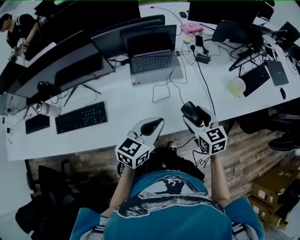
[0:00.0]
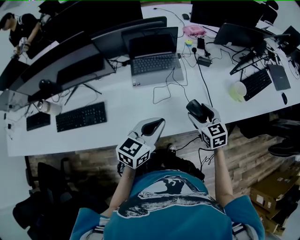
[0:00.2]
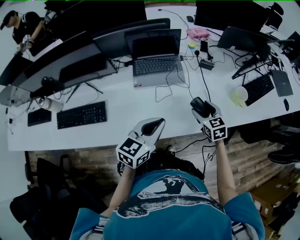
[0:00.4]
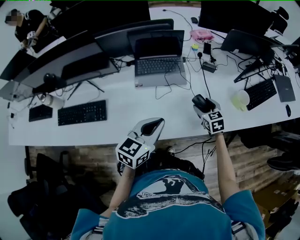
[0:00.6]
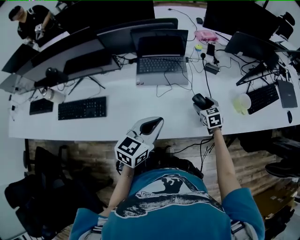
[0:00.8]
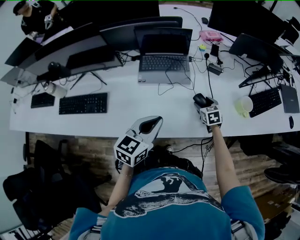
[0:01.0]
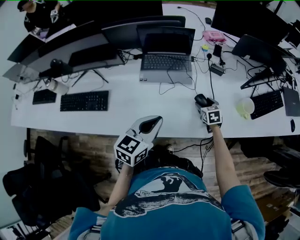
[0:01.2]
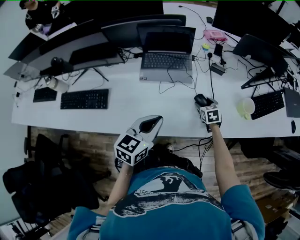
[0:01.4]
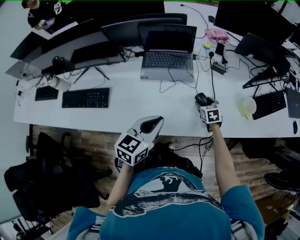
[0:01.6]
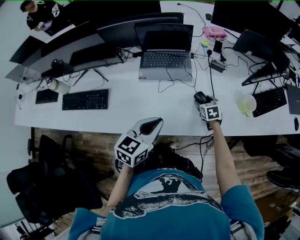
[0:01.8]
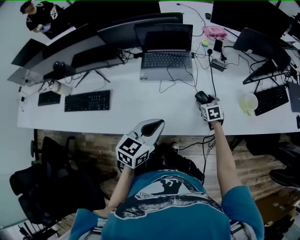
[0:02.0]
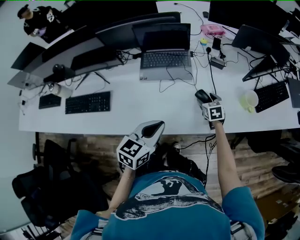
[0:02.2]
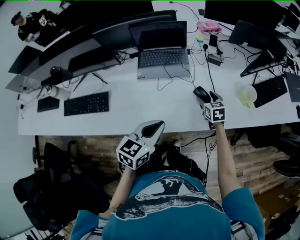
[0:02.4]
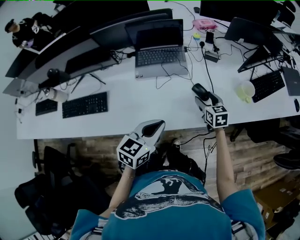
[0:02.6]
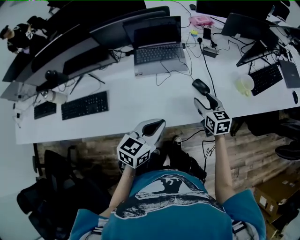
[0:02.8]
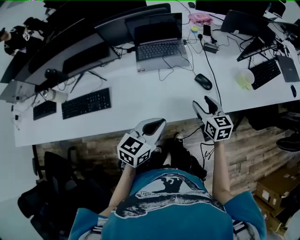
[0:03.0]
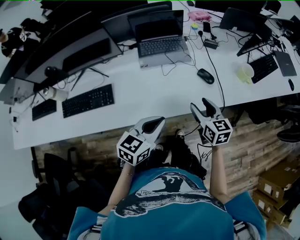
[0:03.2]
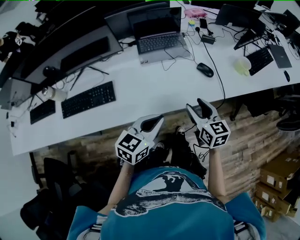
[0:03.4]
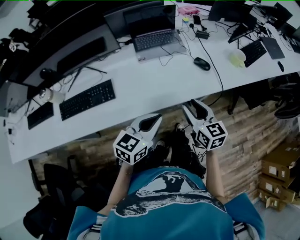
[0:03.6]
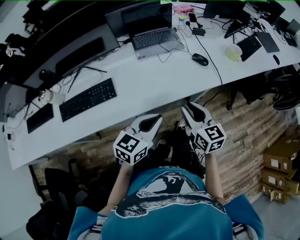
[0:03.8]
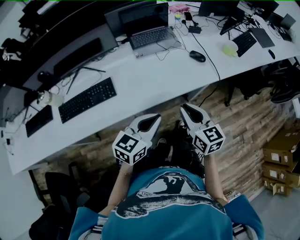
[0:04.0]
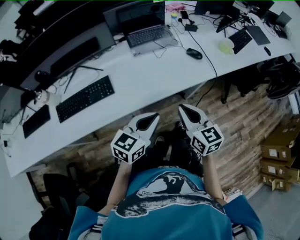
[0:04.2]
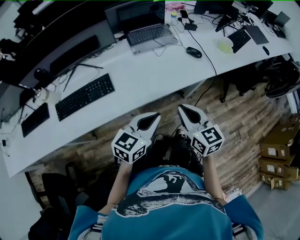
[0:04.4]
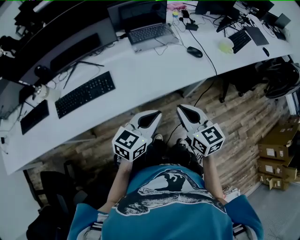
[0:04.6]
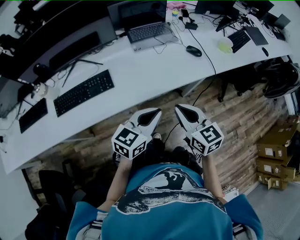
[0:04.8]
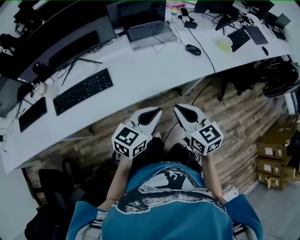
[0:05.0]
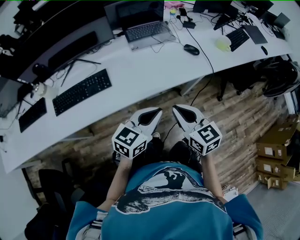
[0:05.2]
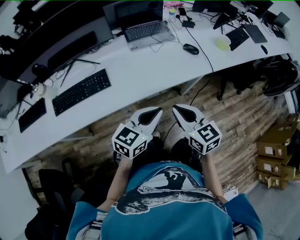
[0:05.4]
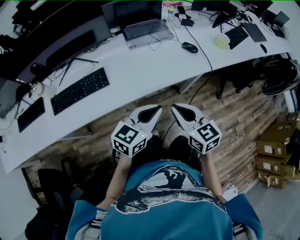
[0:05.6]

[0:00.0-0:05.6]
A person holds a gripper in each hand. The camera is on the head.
0.0 to 1.4 s: The right gripper shifts some 25 cm downward, forward and to the right, and swivels approximately 20 degrees.
1.4 to 2.8 s: The left gripper travels backward by approximately 5 cm; the right gripper heads upward and backward, covering roughly 15 cm, and swivels roughly 20 degrees.
2.8 to 4.2 s: The right gripper shifts roughly 35 cm backward and to the left, and closes its fingers, while the left gripper moves backward and to the left, approximately 20 cm.
4.2 to 5.6 s: The grippers stay close to where they were, moving slightly.

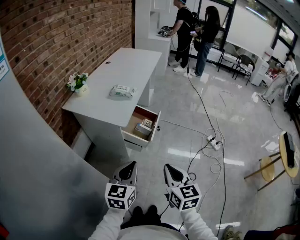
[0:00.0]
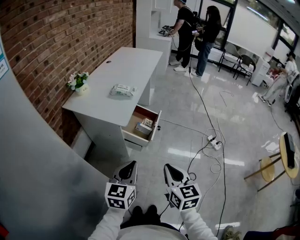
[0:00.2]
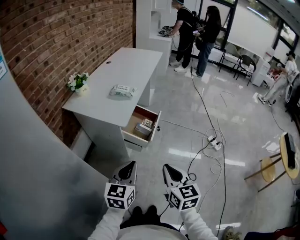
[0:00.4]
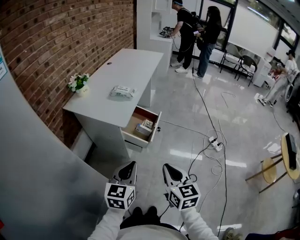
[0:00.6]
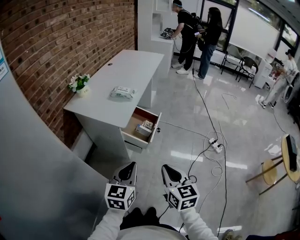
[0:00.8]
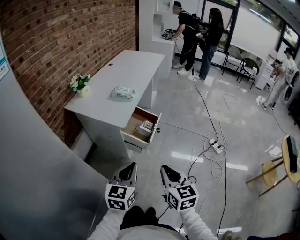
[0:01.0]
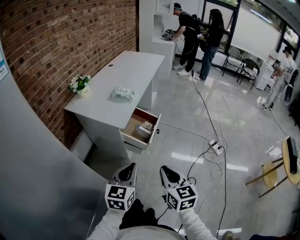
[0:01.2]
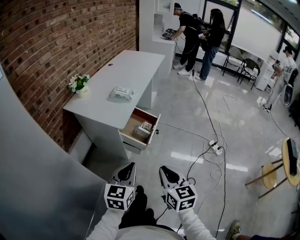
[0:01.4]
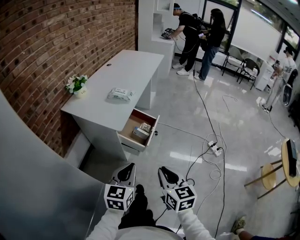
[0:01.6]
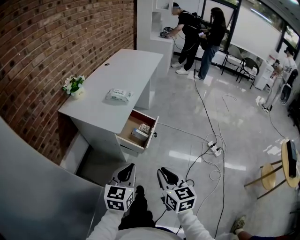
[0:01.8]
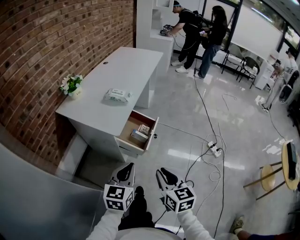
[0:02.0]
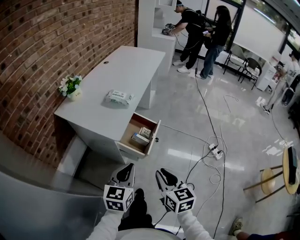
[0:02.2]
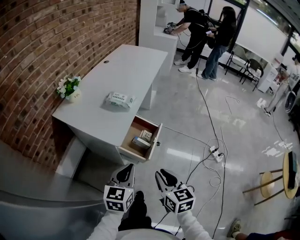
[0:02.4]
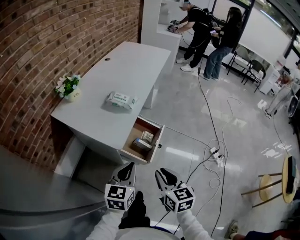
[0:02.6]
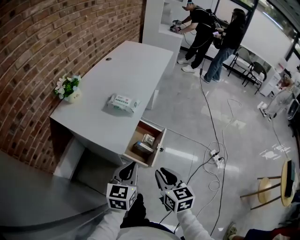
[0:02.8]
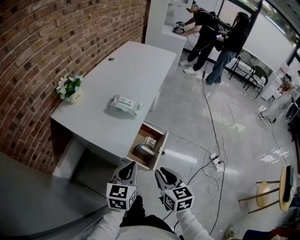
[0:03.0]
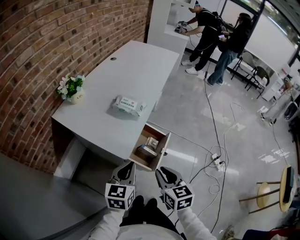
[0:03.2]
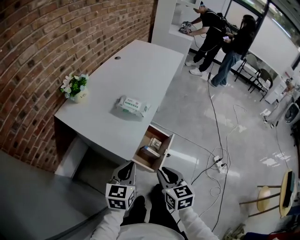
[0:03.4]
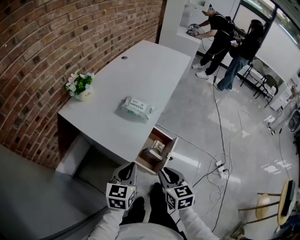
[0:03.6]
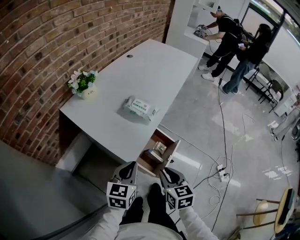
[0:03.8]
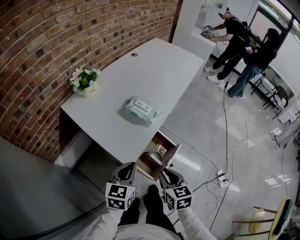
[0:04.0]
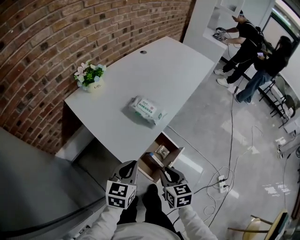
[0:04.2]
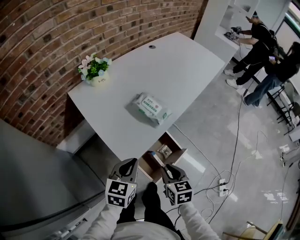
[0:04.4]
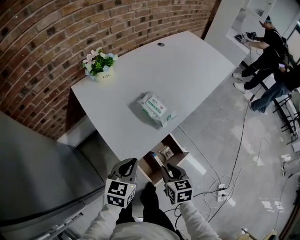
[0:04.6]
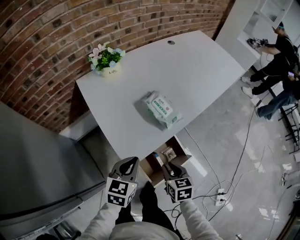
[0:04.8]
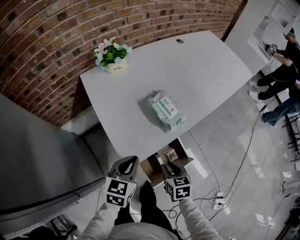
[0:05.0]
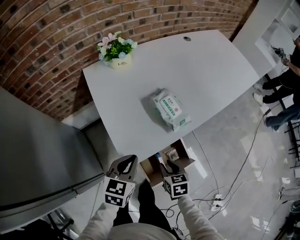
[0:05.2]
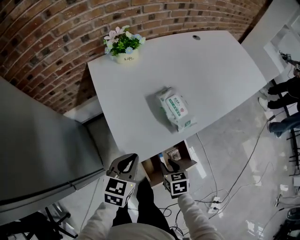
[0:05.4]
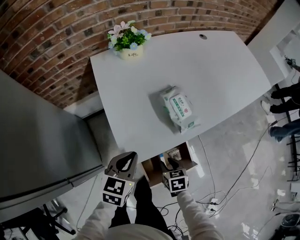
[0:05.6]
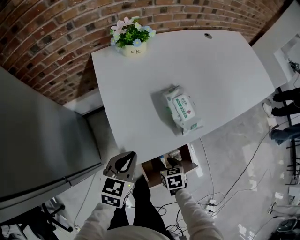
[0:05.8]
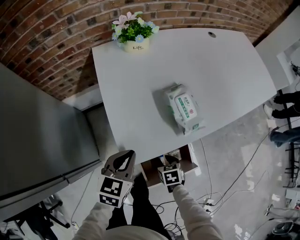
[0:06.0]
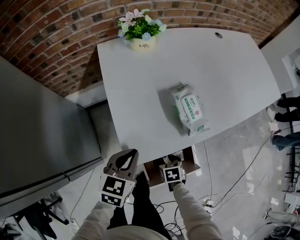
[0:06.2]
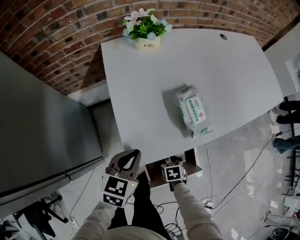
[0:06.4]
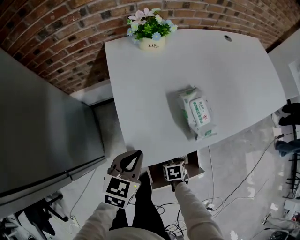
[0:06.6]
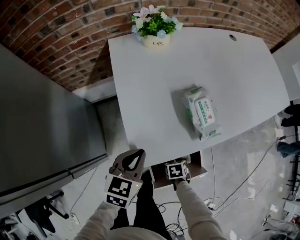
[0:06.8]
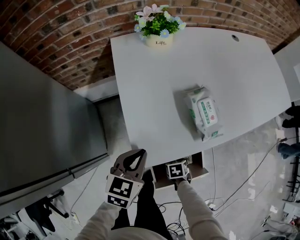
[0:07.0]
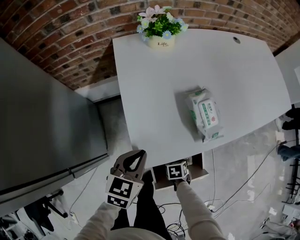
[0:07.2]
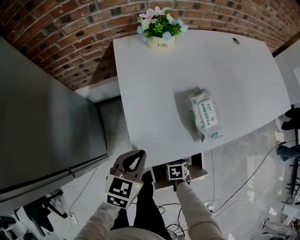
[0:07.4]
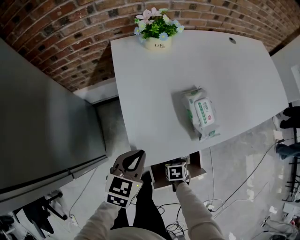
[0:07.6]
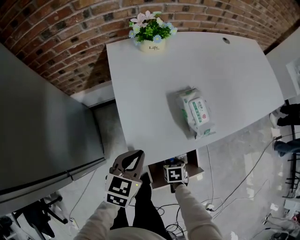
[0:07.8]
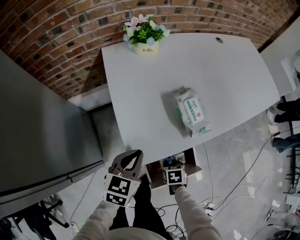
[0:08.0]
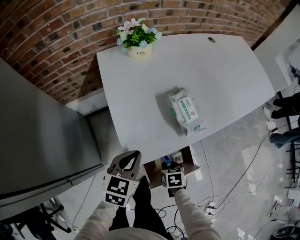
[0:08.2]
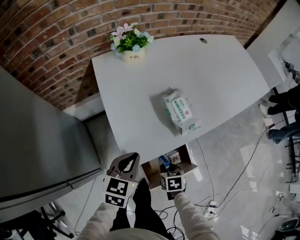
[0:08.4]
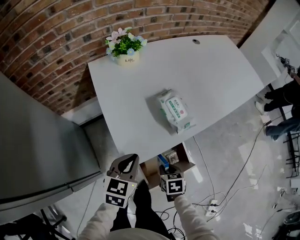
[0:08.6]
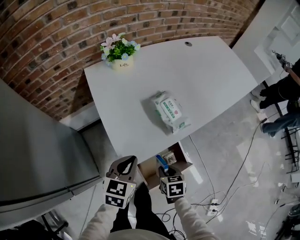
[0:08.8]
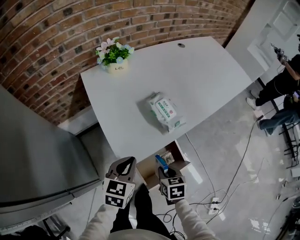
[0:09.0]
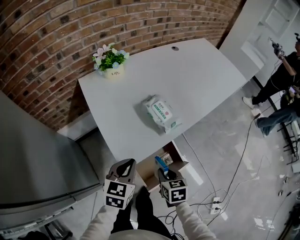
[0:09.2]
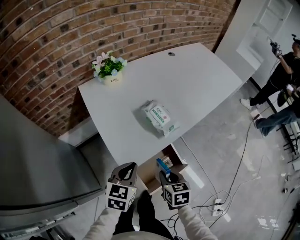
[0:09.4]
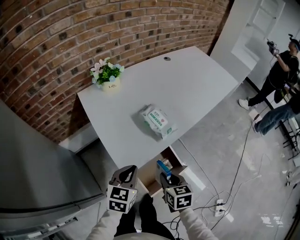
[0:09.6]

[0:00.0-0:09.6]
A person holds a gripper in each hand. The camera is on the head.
0.0 to 1.6 s: There are only small adjustments of the grippers.
1.6 to 3.2 s: The two grippers go roughly 25 cm forward.
3.2 to 4.8 s: The left gripper shifts by approximately 15 cm, and swivels about 20 degrees. The right gripper shifts by roughly 20 cm, and turns by roughly 30 degrees.
4.8 to 6.4 s: The right gripper is displaced downward by approximately 20 cm, and swivels roughly 30 degrees. The left gripper moves approximately 5 cm.
6.4 to 8.0 s: The right gripper closes up.
8.0 to 9.6 s: The left gripper moves roughly 5 cm; the right gripper heads upward, covering about 20 cm, and rotates about 30 degrees.

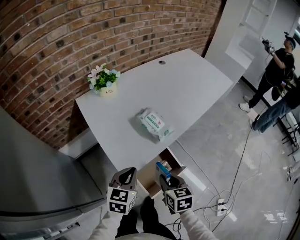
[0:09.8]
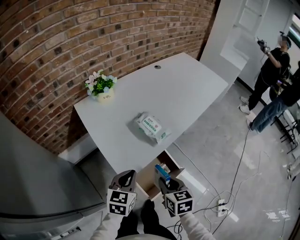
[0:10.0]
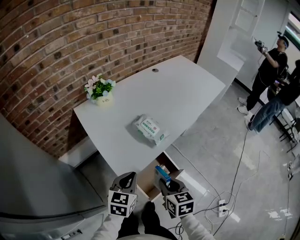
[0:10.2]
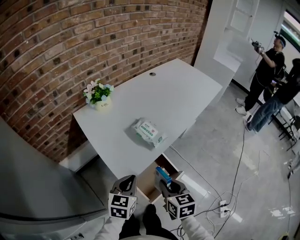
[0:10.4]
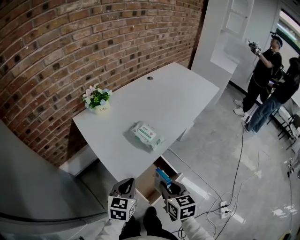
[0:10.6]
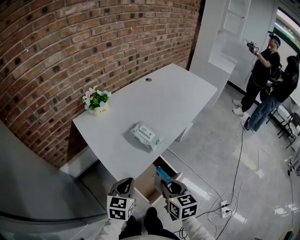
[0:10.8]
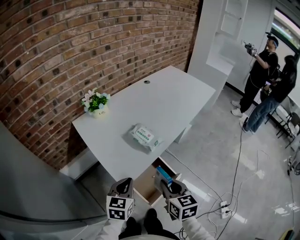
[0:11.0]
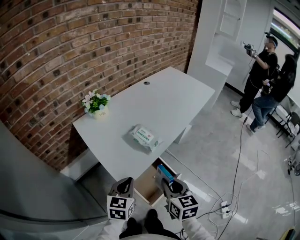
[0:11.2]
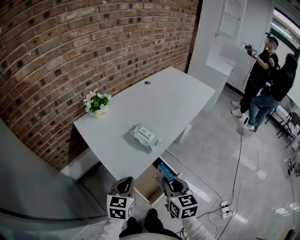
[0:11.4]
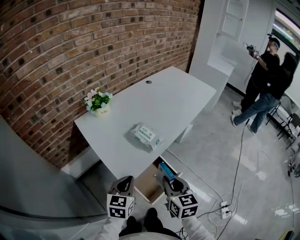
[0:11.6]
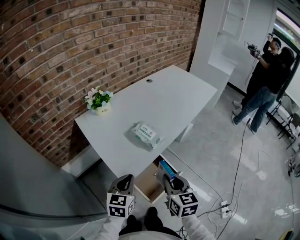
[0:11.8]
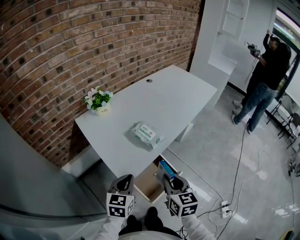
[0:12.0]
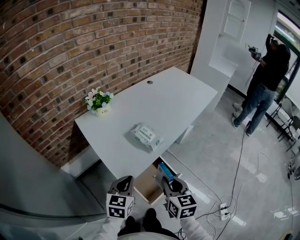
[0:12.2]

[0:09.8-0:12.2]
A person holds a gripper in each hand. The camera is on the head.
9.8 to 11.0 s: The right gripper is displaced upward by about 10 cm.
11.0 to 12.2 s: The grippers stay close to where they were, moving slightly.

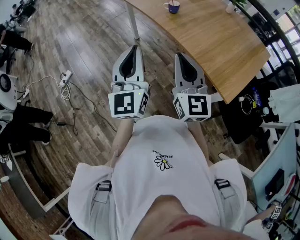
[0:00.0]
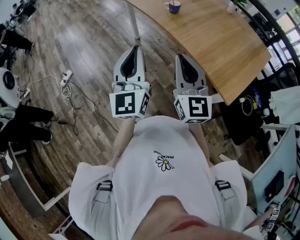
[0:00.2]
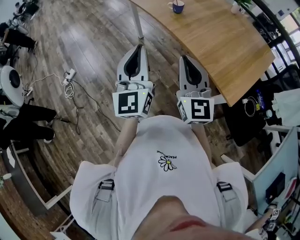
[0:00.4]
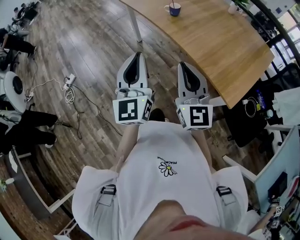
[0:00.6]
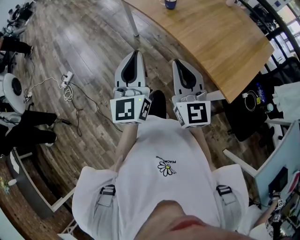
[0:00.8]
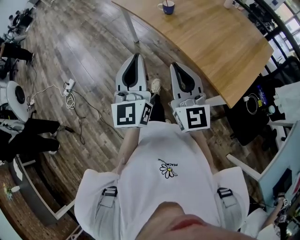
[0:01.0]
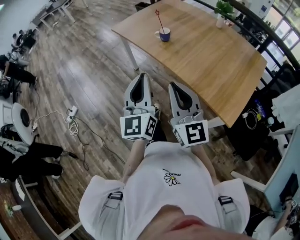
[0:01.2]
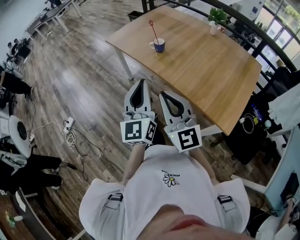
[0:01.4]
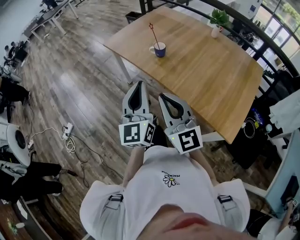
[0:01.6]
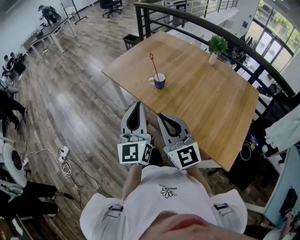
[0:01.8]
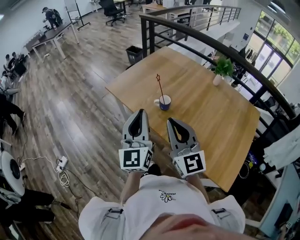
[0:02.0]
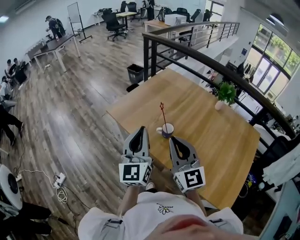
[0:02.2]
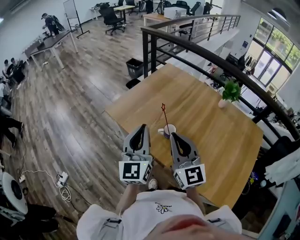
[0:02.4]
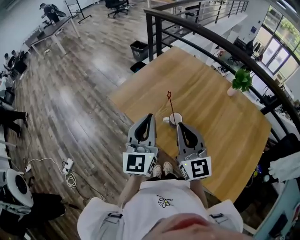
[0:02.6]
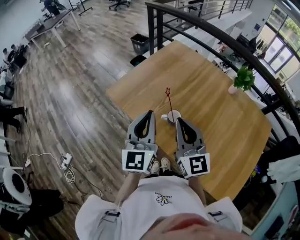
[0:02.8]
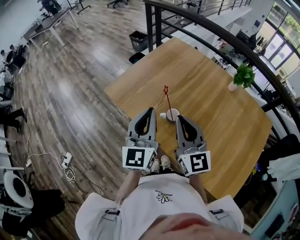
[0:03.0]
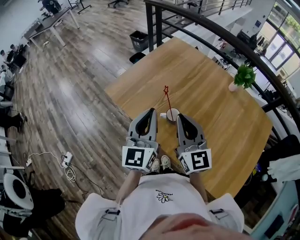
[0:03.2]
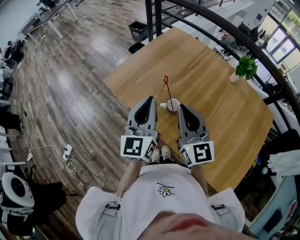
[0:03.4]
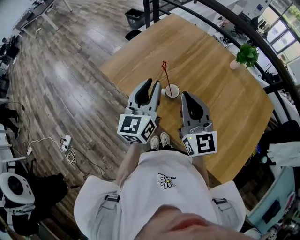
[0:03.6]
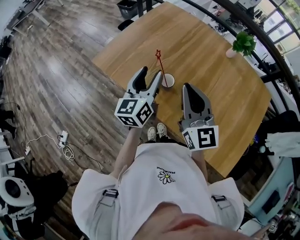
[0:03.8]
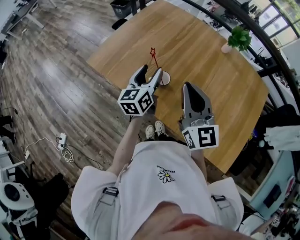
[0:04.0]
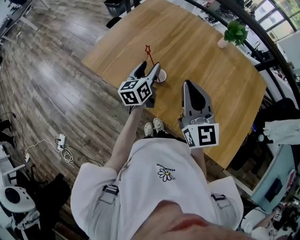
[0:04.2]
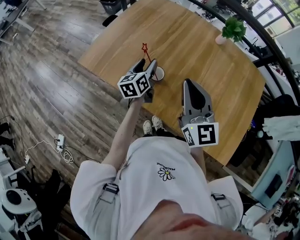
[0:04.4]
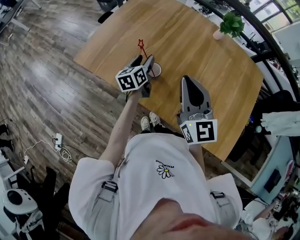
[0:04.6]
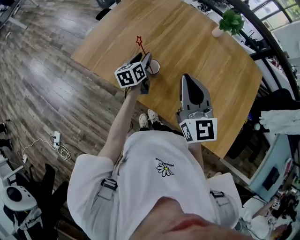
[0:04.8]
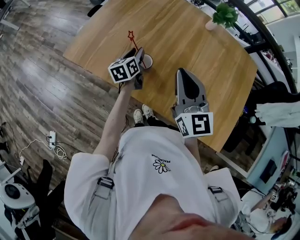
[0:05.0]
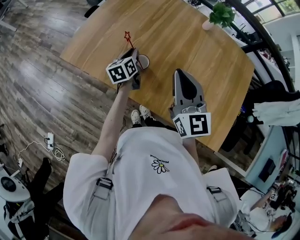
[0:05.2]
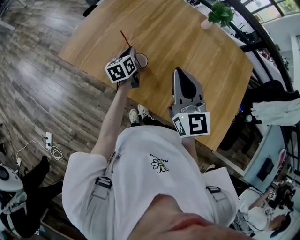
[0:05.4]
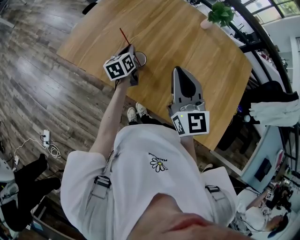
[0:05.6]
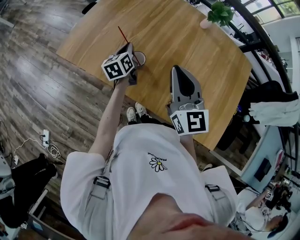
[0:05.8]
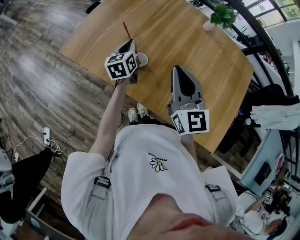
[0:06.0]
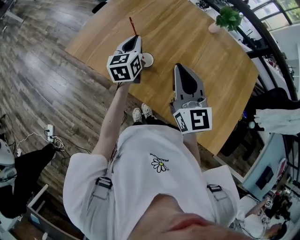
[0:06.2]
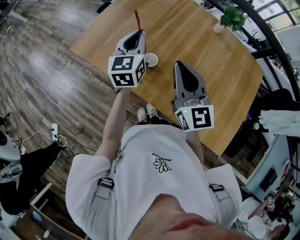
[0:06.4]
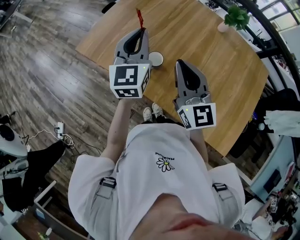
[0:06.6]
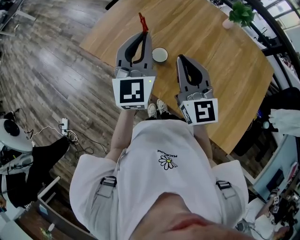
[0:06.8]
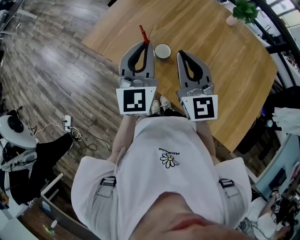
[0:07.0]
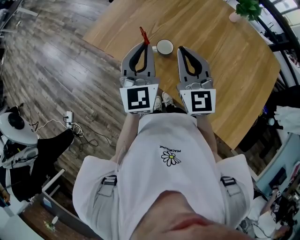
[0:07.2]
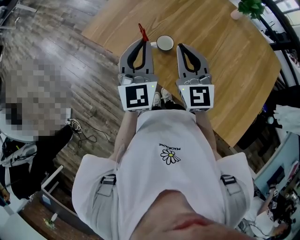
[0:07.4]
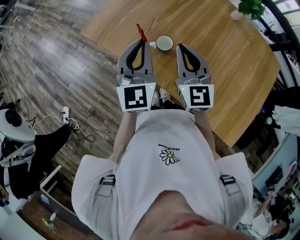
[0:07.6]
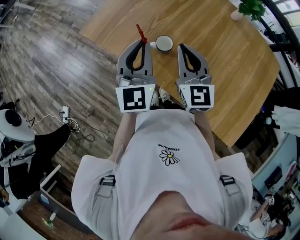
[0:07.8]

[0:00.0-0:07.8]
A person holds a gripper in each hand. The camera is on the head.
0.0 to 1.6 s: The two grippers go about 15 cm forward.
1.6 to 3.2 s: The two grippers go approximately 35 cm forward.
3.2 to 4.6 s: The right gripper moves to the right, roughly 5 cm; the left gripper shifts roughly 25 cm downward and forward, rotates some 40 degrees, and opens its fingers.
4.6 to 6.2 s: The left gripper moves upward, some 10 cm, and closes its fingers.
6.2 to 7.8 s: The right gripper goes approximately 5 cm downward; the left gripper travels backward and upward by some 15 cm, and rotates roughly 30 degrees.
